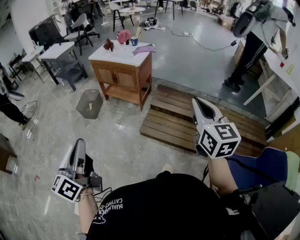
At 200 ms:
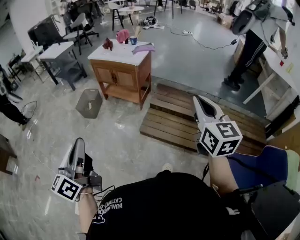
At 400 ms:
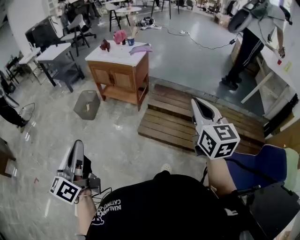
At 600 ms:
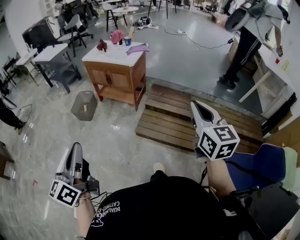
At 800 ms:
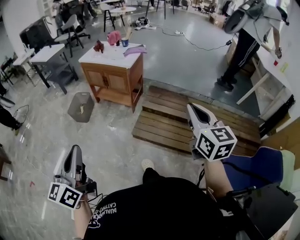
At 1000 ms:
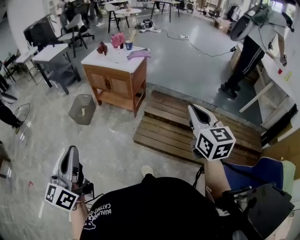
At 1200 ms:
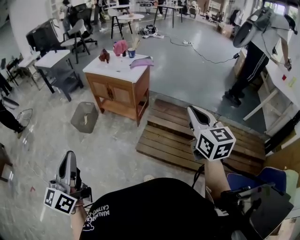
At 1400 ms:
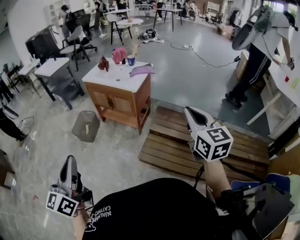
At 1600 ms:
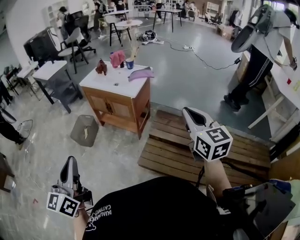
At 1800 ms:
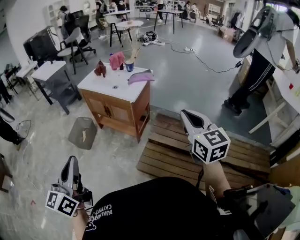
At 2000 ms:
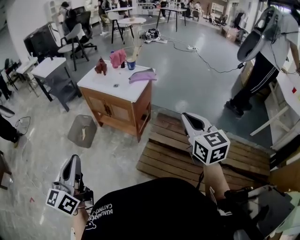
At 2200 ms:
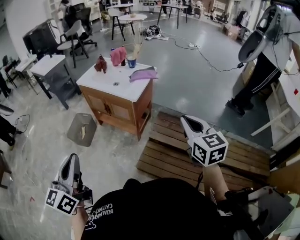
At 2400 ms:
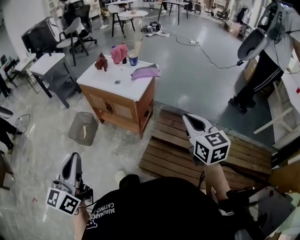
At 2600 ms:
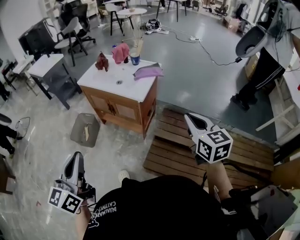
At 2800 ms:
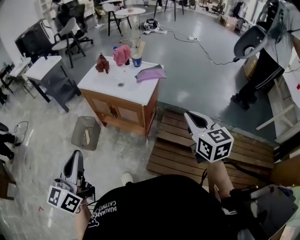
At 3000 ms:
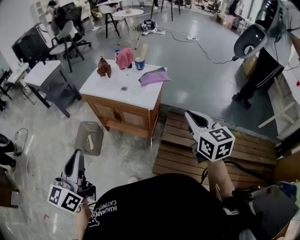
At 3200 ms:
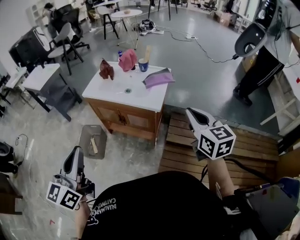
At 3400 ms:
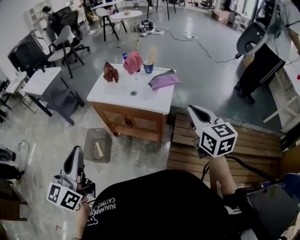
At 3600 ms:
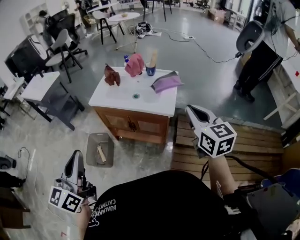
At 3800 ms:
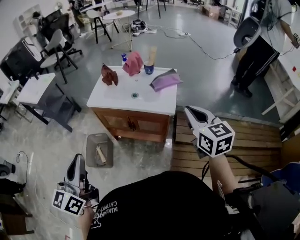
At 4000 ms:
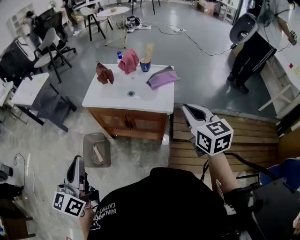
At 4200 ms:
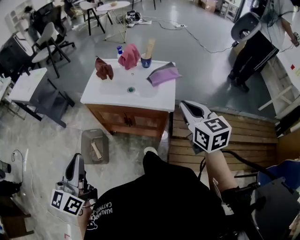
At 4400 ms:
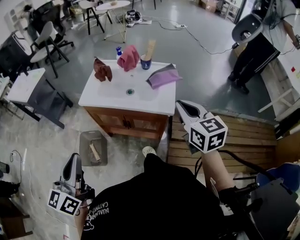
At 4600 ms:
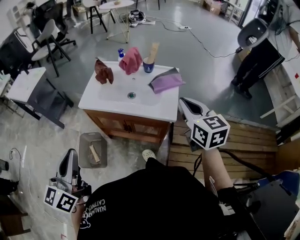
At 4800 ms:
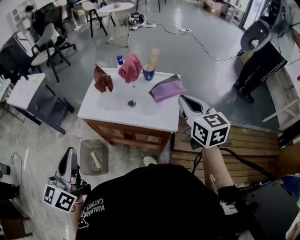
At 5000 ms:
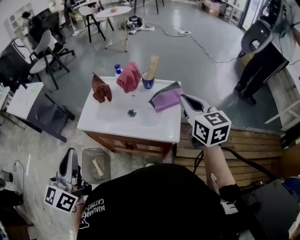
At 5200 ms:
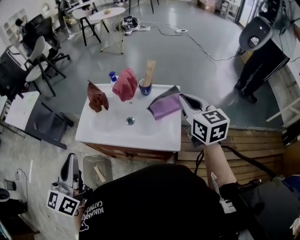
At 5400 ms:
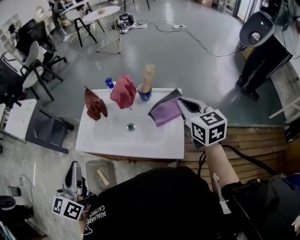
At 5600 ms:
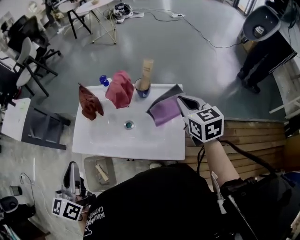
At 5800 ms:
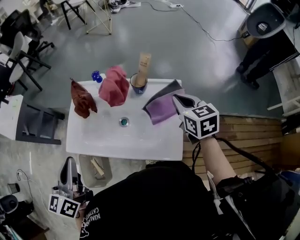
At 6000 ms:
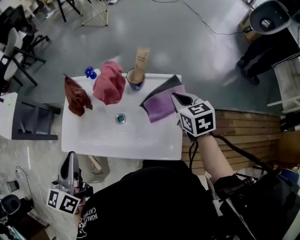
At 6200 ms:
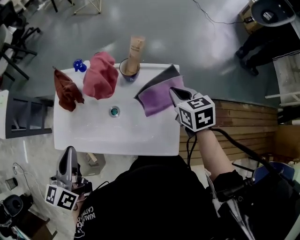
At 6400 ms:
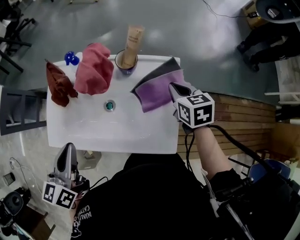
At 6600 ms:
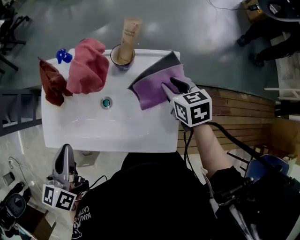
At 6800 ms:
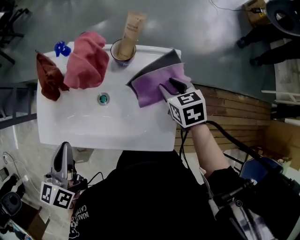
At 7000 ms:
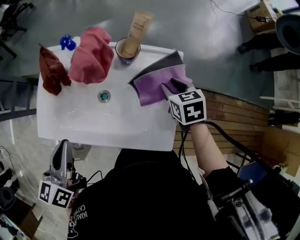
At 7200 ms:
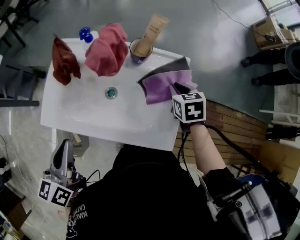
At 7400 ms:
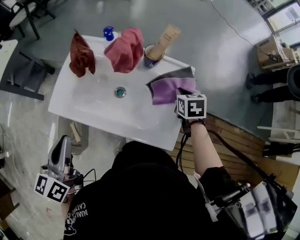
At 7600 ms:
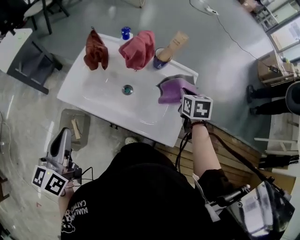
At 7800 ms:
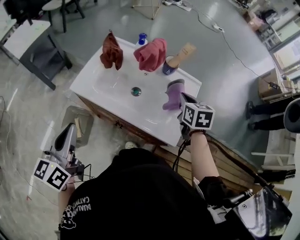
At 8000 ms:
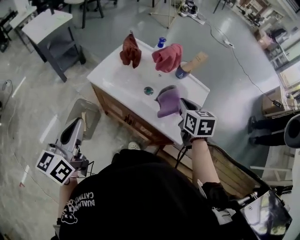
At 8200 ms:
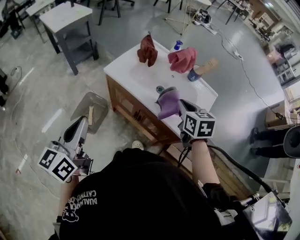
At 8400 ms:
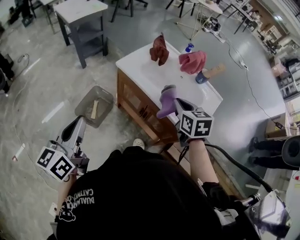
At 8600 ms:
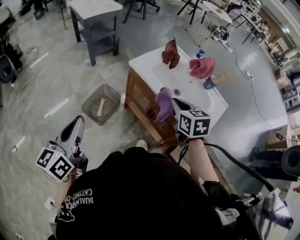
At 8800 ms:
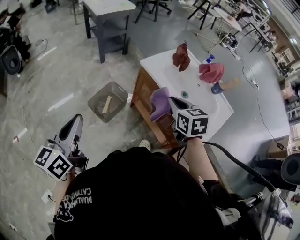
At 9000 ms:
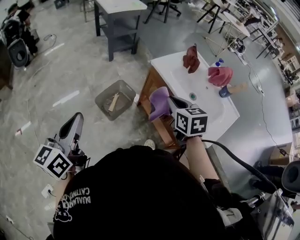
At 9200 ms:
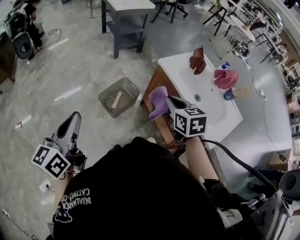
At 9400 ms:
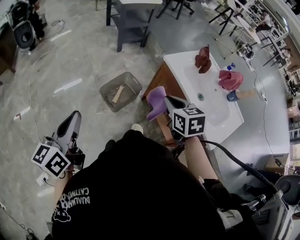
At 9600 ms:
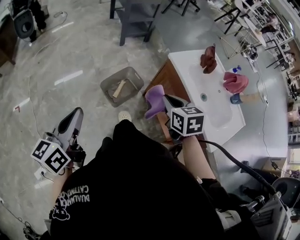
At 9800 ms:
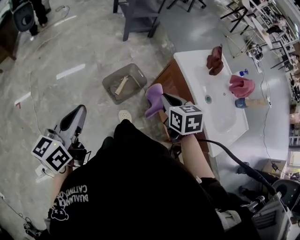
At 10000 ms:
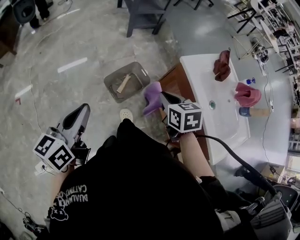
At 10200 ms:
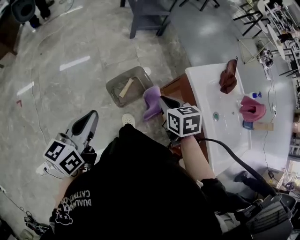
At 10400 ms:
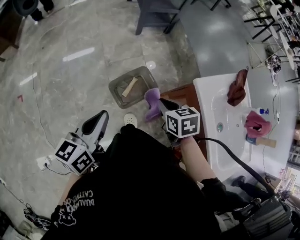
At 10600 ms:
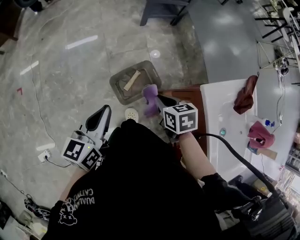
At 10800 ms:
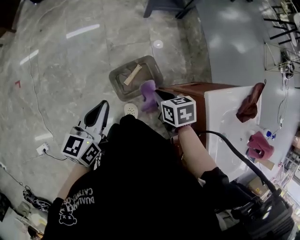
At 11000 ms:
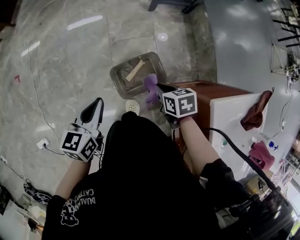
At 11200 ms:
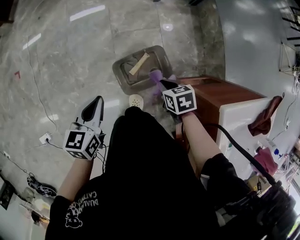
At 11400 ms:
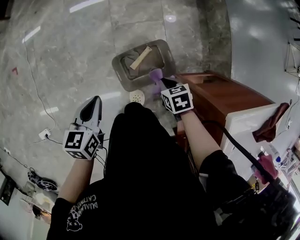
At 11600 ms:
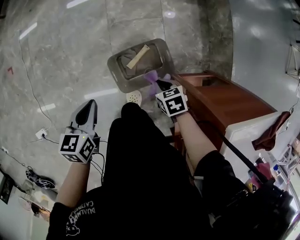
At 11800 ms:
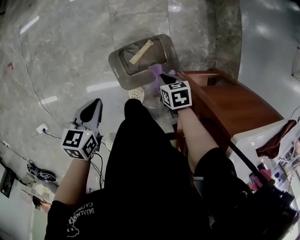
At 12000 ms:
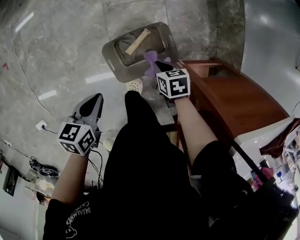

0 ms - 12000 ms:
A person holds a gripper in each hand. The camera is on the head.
0 ms - 1600 ms: The two grippers go approximately 25 cm forward. The left gripper turns by roughly 20 degrees.
1600 ms - 3000 ms: The left gripper is displaced forward by approximately 25 cm; the right gripper travels forward and to the left by approximately 25 cm.
3000 ms - 4400 ms: The two grippers go roughly 25 cm to the left and forward.
4400 ms - 6000 ms: The right gripper shifts roughly 40 cm forward and downward, and swivels some 20 degrees; the left gripper travels forward by some 40 cm.
6000 ms - 7600 ms: The right gripper heads downward, covering about 5 cm, and opens and closes again. Meanwhile the left gripper is displaced backward by approximately 10 cm.
7600 ms - 9000 ms: The left gripper moves roughly 40 cm, and changes its angle by about 30 degrees. Meanwhile the right gripper shifts by about 50 cm, and rotates roughly 50 degrees.
9000 ms - 10400 ms: The right gripper goes approximately 30 cm forward, downward and to the left, and rotates roughly 30 degrees. Meanwhile the left gripper moves forward and downward, roughly 25 cm.
10400 ms - 12000 ms: Both grippers move downward, some 35 cm. The right gripper rotates approximately 20 degrees, while the left gripper angles its fingers downward, by roughly 30 degrees.

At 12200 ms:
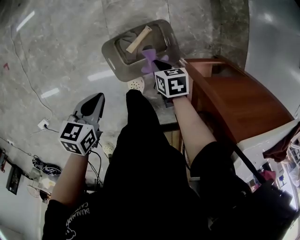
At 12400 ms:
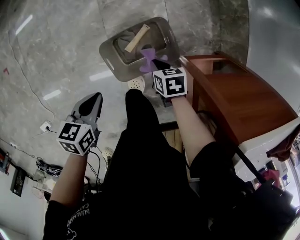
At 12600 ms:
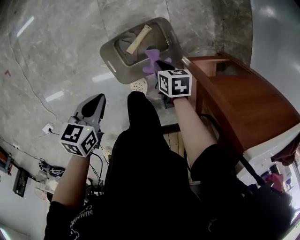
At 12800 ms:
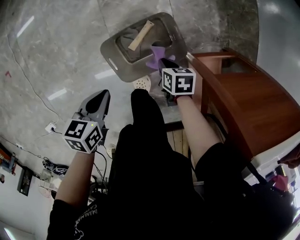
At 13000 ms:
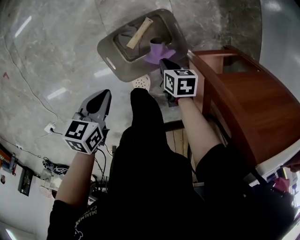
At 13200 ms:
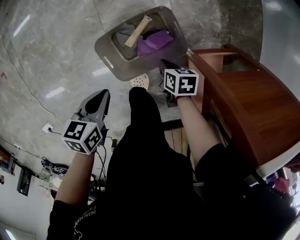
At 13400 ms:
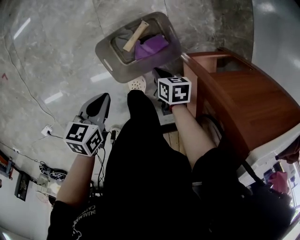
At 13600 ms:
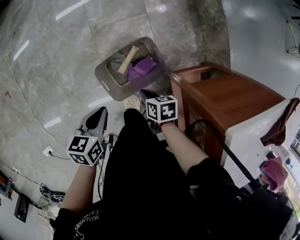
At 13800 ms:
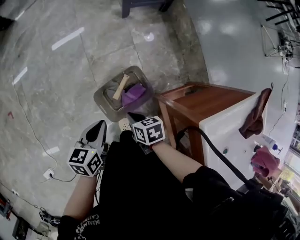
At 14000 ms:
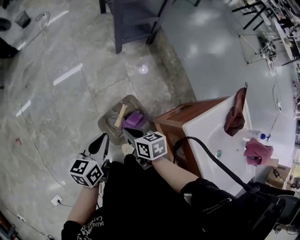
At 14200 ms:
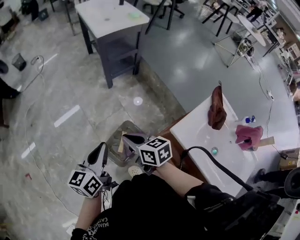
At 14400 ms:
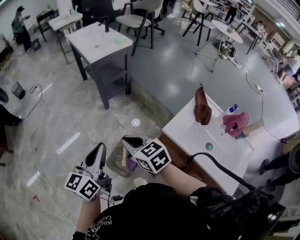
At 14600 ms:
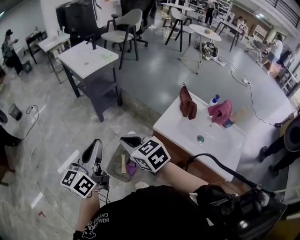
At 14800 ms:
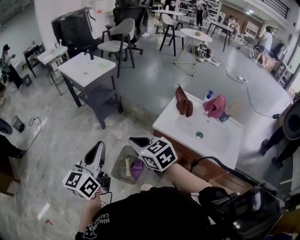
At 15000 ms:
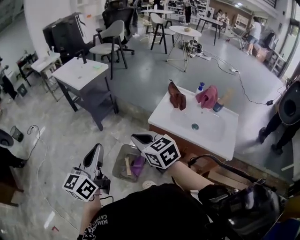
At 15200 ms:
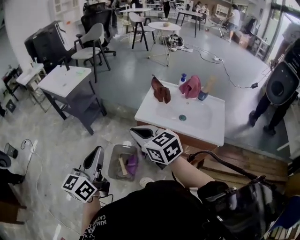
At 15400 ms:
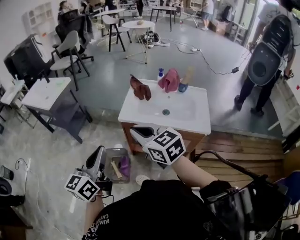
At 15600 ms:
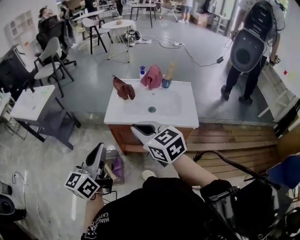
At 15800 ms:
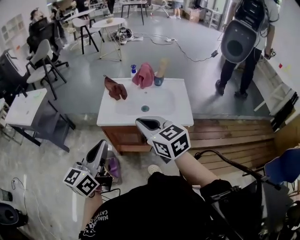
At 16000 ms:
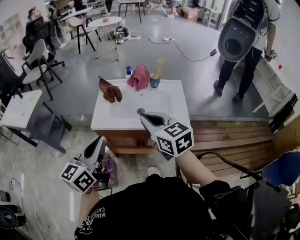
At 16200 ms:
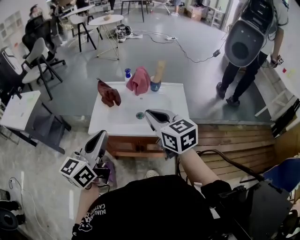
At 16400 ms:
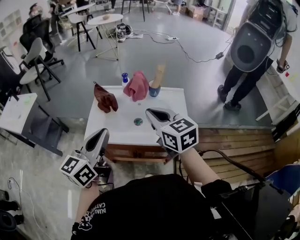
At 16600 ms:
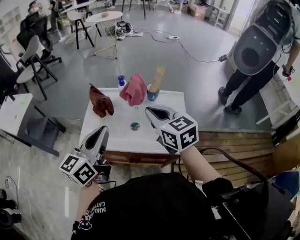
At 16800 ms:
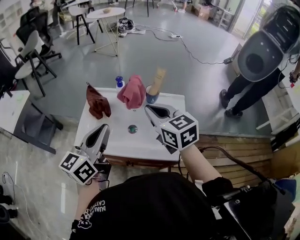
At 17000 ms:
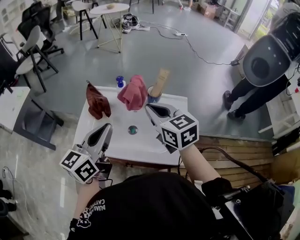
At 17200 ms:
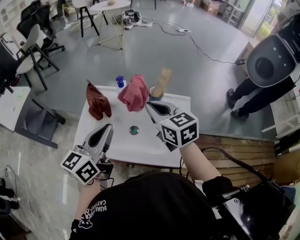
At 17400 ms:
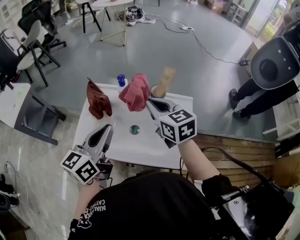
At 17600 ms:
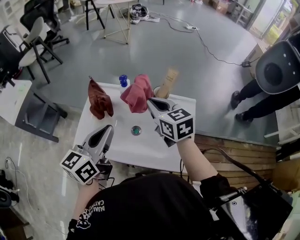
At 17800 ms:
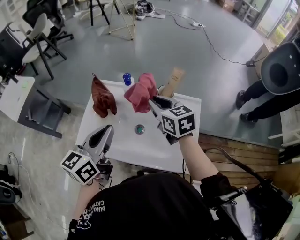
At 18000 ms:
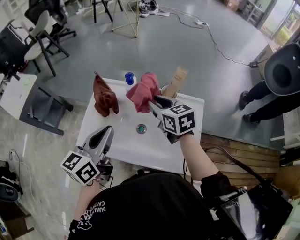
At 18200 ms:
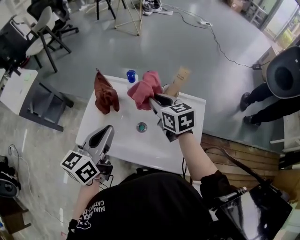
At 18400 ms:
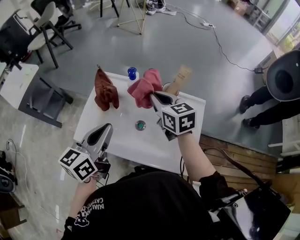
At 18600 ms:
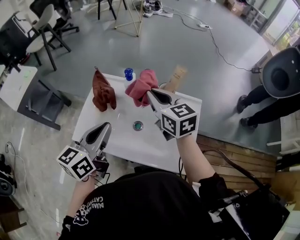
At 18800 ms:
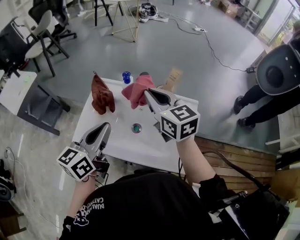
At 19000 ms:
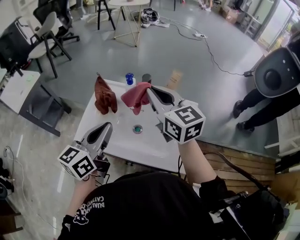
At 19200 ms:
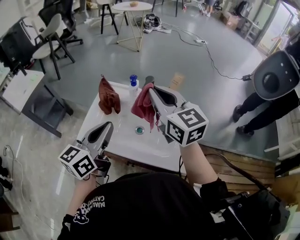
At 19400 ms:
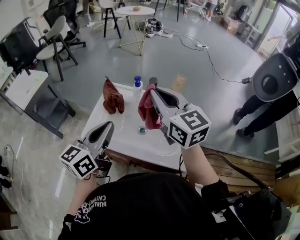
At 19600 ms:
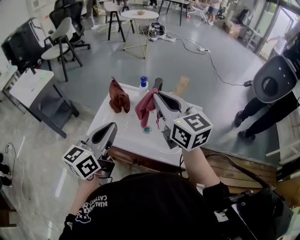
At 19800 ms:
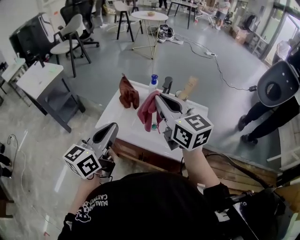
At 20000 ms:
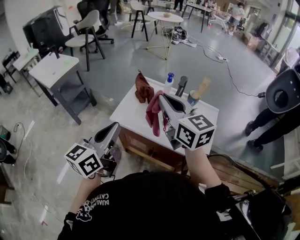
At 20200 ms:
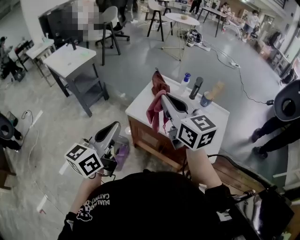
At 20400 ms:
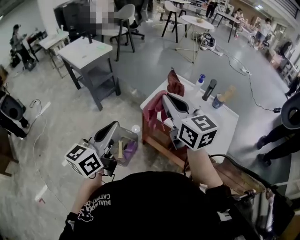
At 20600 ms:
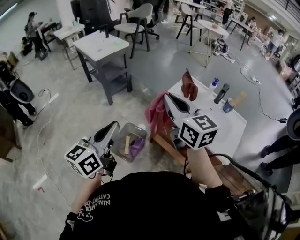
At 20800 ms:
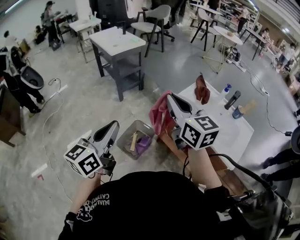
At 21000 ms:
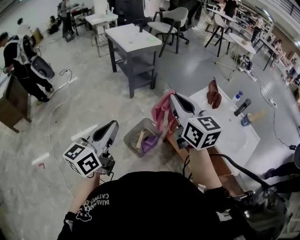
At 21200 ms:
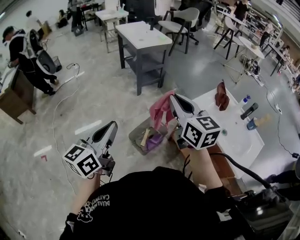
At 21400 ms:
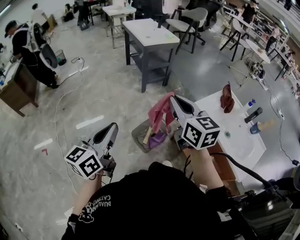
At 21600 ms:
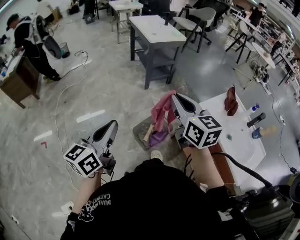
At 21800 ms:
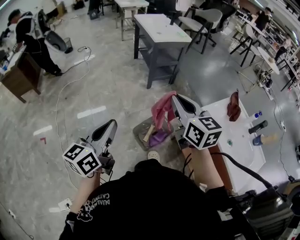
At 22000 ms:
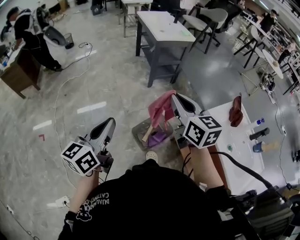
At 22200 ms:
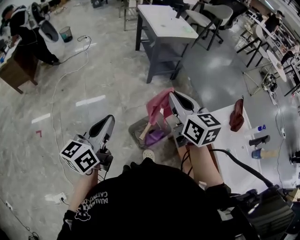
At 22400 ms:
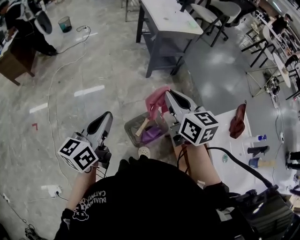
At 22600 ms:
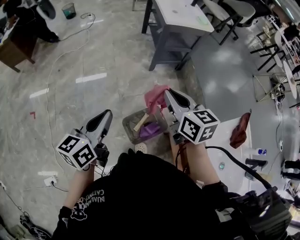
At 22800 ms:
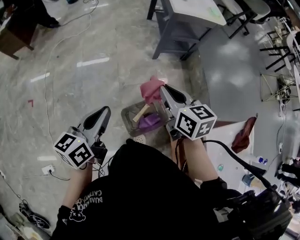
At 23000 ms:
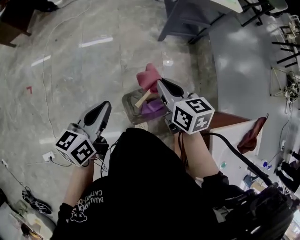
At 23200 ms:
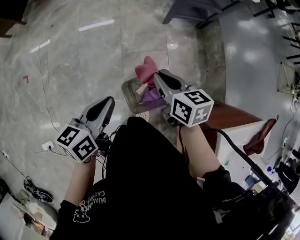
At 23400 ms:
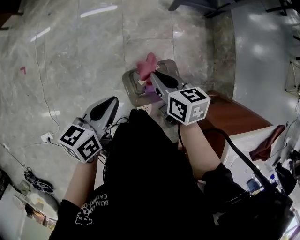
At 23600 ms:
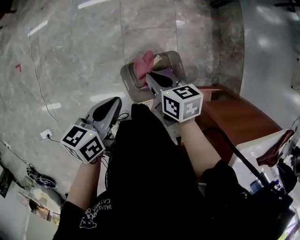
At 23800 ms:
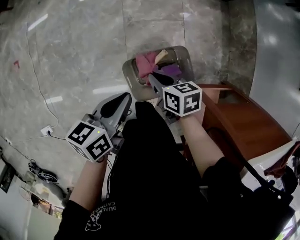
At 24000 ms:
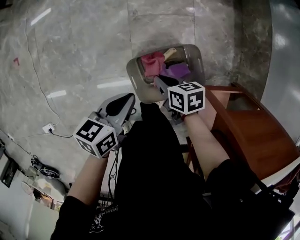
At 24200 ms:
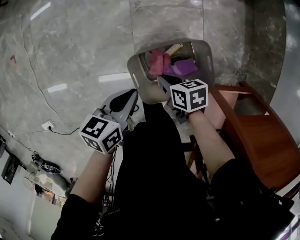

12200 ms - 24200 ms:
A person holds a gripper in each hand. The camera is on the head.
12200 ms - 13800 ms: The left gripper is displaced upward and to the right by approximately 10 cm. Meanwhile the right gripper is displaced upward by roughly 15 cm.
13800 ms - 15200 ms: Both grippers travel together upward, approximately 50 cm. The right gripper tips its fingers upward by approximately 40 degrees. The left gripper points its fingers about 40 degrees further upward.
15200 ms - 16600 ms: The pair of grippers is taken some 40 cm. The left gripper changes its angle by roughly 30 degrees. Meanwhile the right gripper changes its angle by some 30 degrees.
16600 ms - 18200 ms: The right gripper moves forward and downward, approximately 20 cm; the left gripper travels forward and downward by approximately 15 cm.
18200 ms - 19800 ms: The right gripper goes about 30 cm upward, backward and to the left, and changes its angle by about 30 degrees. The left gripper is displaced backward, to the left and upward by roughly 15 cm.
19800 ms - 21200 ms: The pair of grippers is taken approximately 50 cm. The right gripper changes its angle by roughly 30 degrees. Meanwhile the left gripper swivels about 40 degrees.
21200 ms - 22600 ms: Both grippers move forward and downward, approximately 25 cm. The right gripper swivels about 30 degrees. Meanwhile the left gripper rotates approximately 20 degrees.
22600 ms - 24200 ms: The two grippers go approximately 60 cm downward. The right gripper changes its angle by approximately 60 degrees. Meanwhile the left gripper tilts its fingers about 30 degrees downward.
